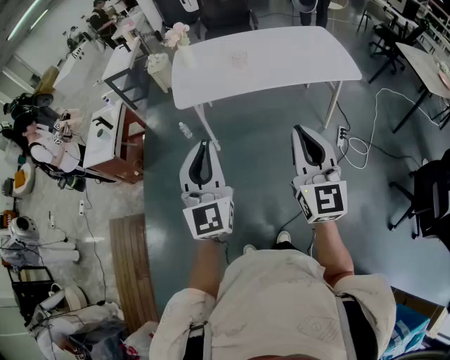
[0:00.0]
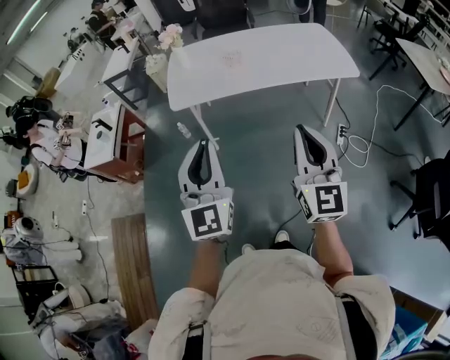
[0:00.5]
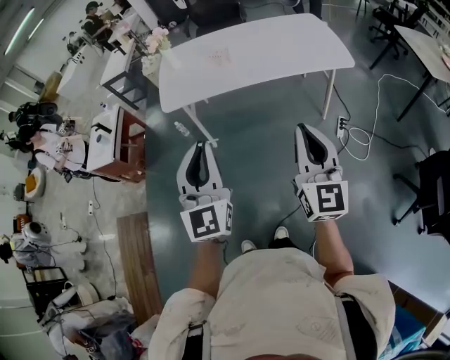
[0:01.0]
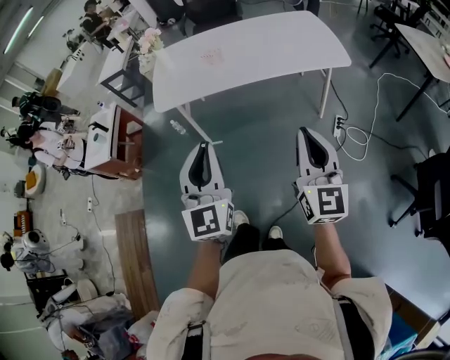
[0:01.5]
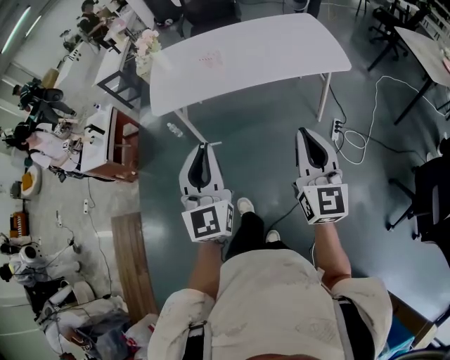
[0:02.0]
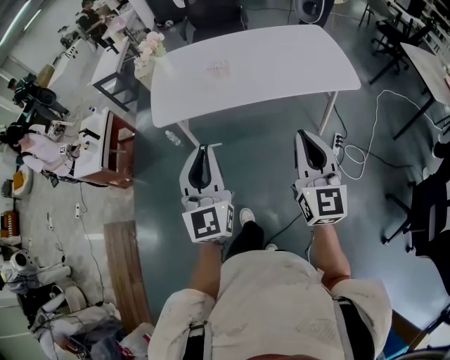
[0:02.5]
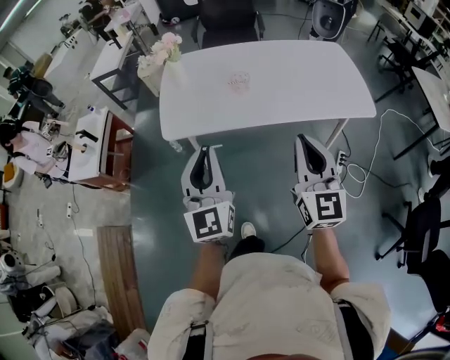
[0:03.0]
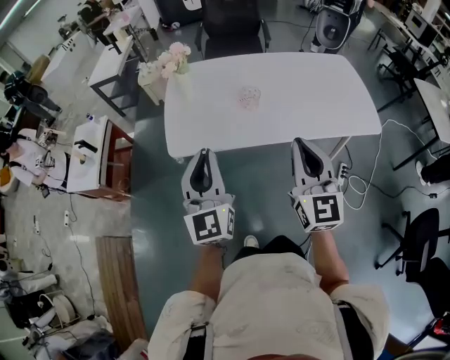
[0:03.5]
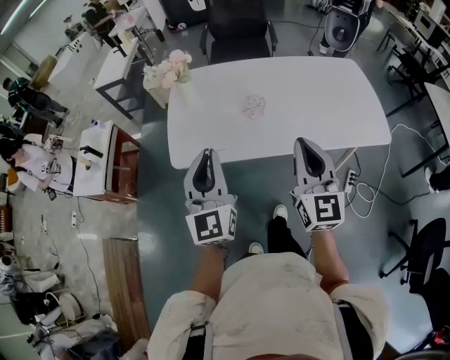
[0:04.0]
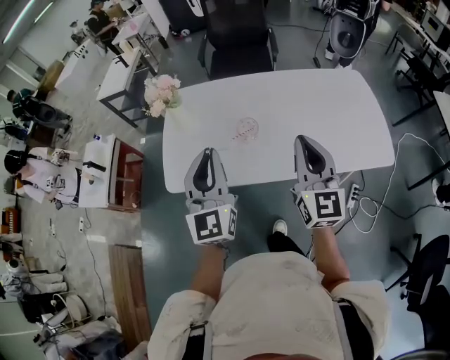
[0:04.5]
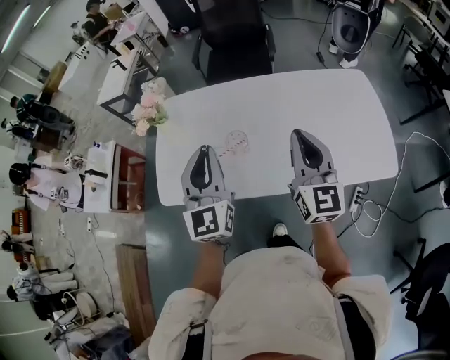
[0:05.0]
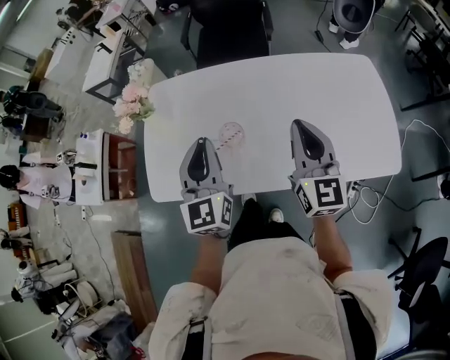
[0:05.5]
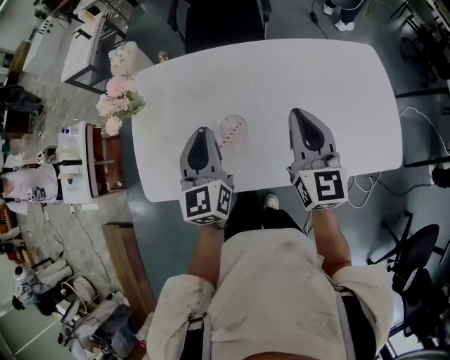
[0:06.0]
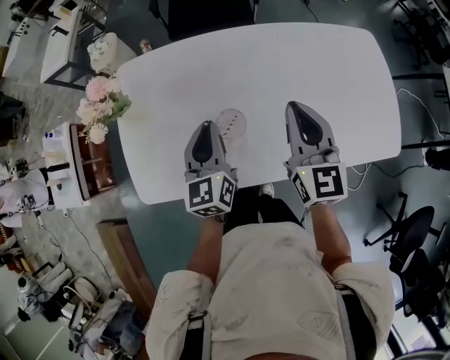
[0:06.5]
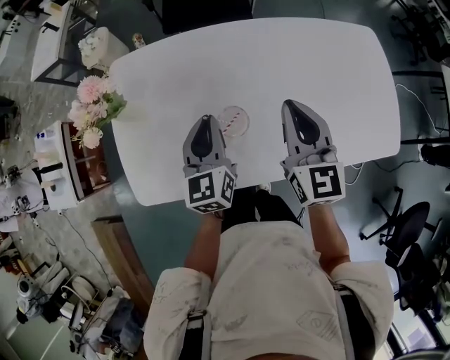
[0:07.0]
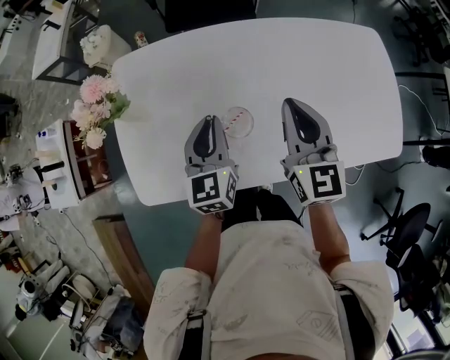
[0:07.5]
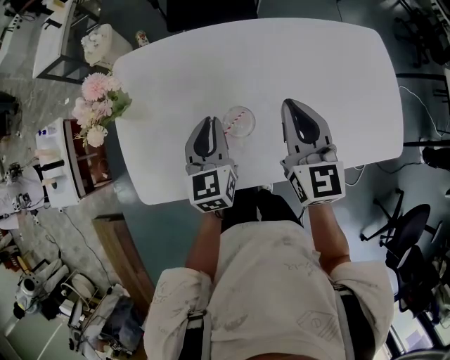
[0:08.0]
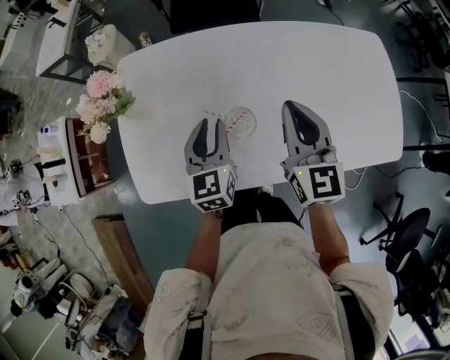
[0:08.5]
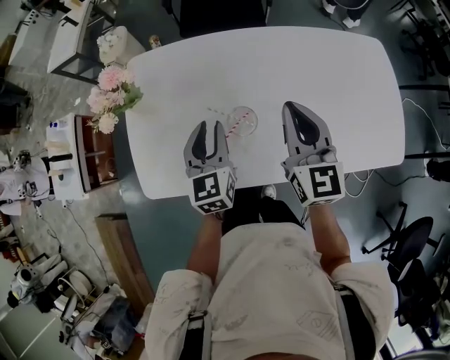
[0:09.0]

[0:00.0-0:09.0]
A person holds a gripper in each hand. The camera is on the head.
0:00.0 to 0:02.0: Both grippers travel together to the right, approximately 20 cm.
0:02.0 to 0:04.5: Both grippers are carried forward, some 50 cm.
0:04.5 to 0:07.0: Both grippers move forward and downward, some 30 cm. The left gripper rotates roughly 30 degrees.
0:07.0 to 0:09.0: The left gripper opens up.

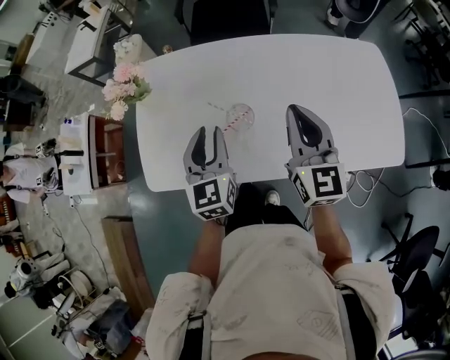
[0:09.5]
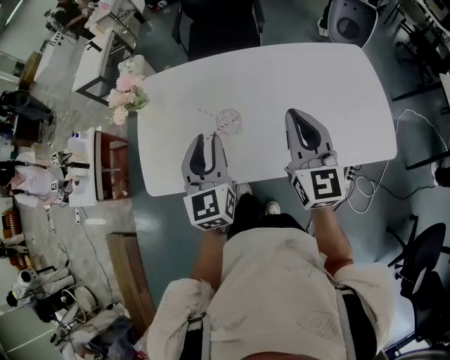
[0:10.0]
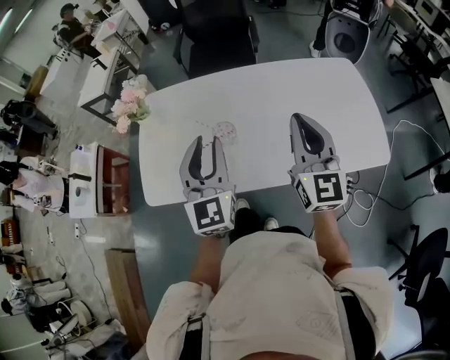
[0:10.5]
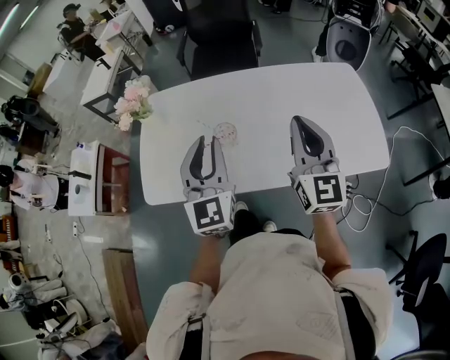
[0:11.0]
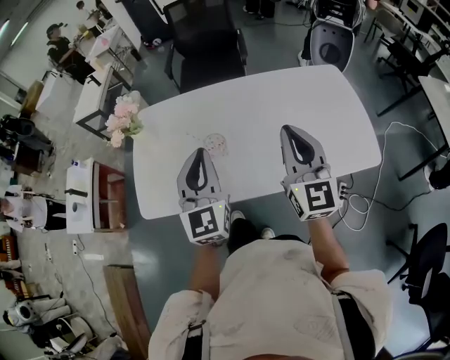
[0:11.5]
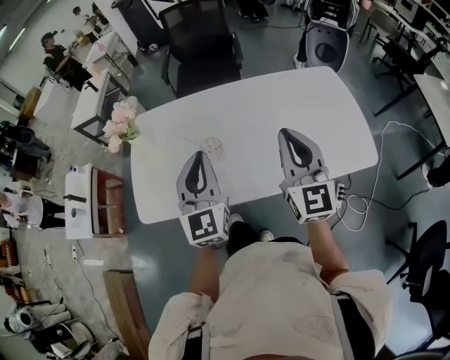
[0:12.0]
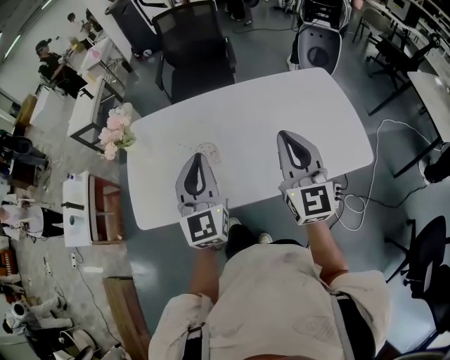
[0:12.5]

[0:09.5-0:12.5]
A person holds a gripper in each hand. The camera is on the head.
0:09.5 to 0:11.0: The left gripper is displaced upward, backward and to the right by approximately 15 cm, and turns by some 20 degrees. The right gripper is displaced backward, to the right and upward by approximately 15 cm.
0:11.0 to 0:12.5: There are only small adjustments of the grippers.

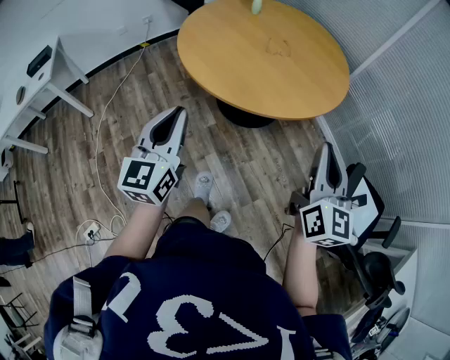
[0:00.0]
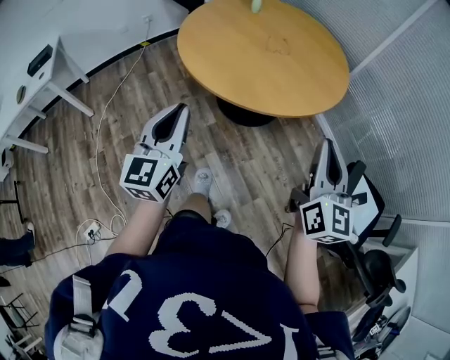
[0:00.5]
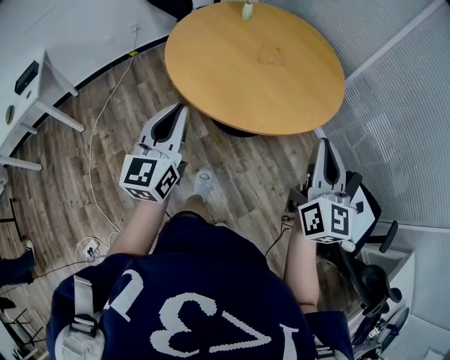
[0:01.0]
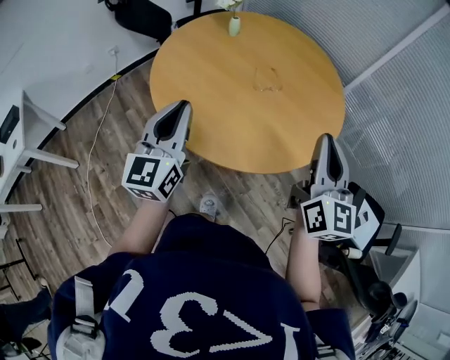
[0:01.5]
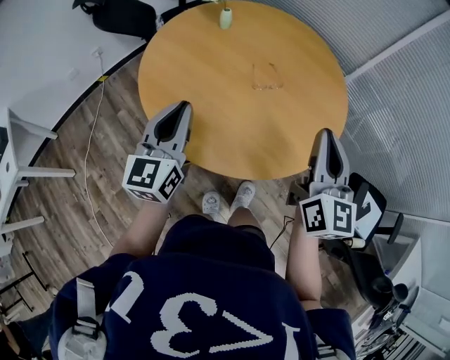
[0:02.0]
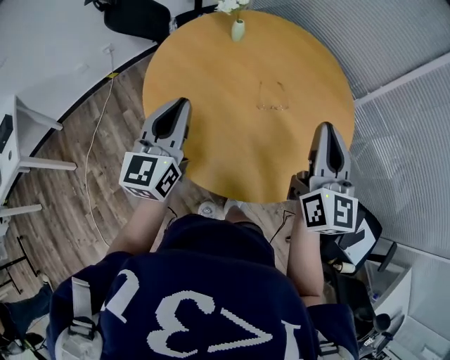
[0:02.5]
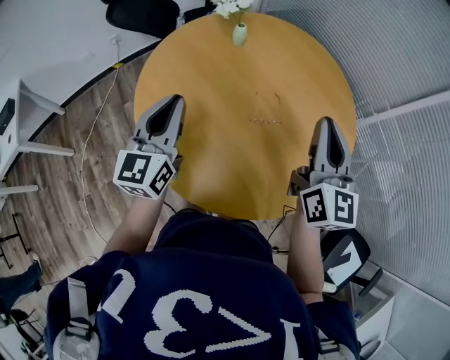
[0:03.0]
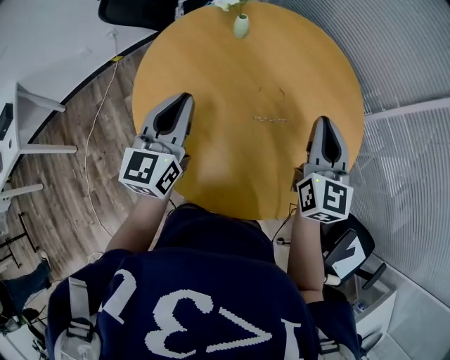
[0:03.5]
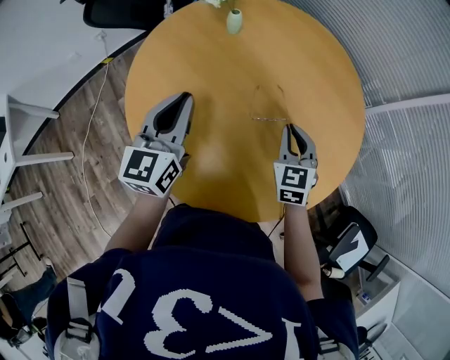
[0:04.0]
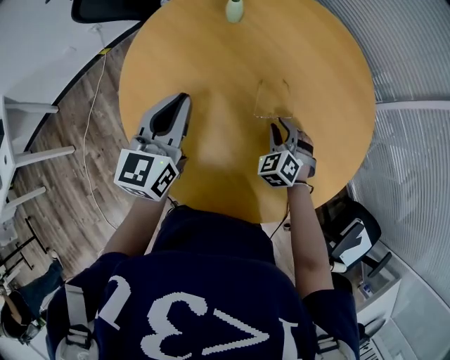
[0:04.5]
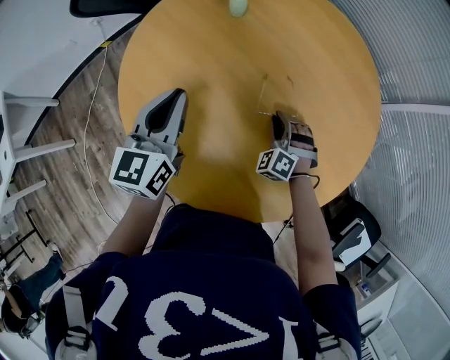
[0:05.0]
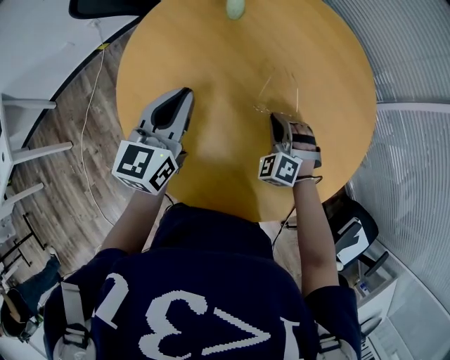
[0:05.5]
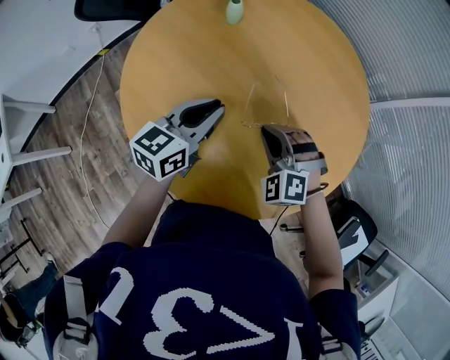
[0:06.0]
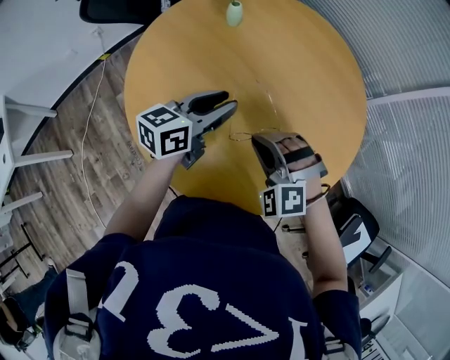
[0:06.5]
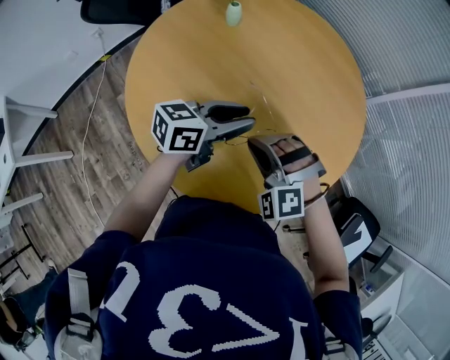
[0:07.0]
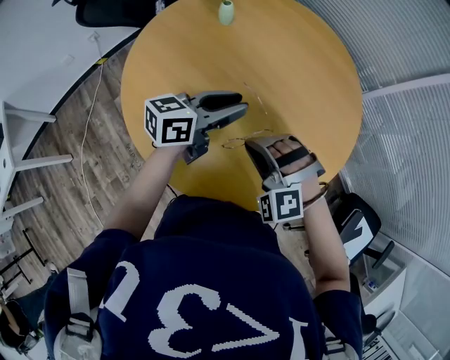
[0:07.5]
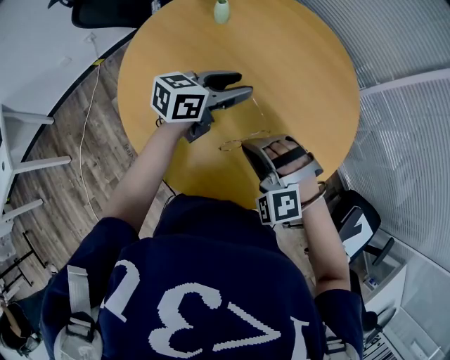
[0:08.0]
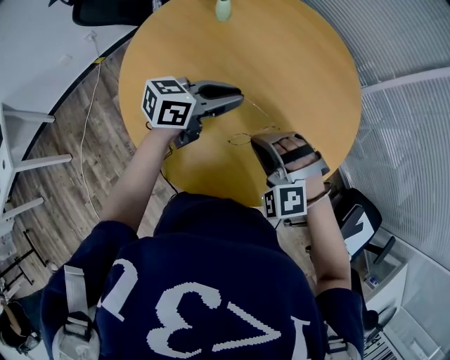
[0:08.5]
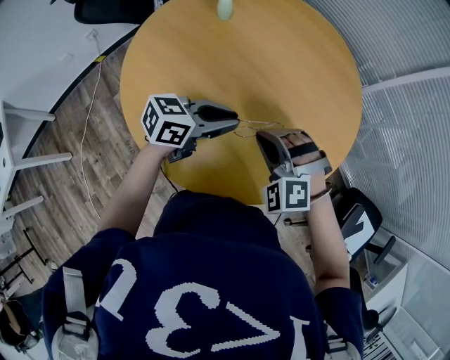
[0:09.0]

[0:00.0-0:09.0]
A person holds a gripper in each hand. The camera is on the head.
0:00.0 to 0:02.0: Both grippers travel together forward, approximately 35 cm.
0:02.0 to 0:04.5: The right gripper shifts approximately 40 cm downward and forward, angles its fingers downward, by roughly 50 degrees, and opens its fingers. Meanwhile the left gripper shifts approximately 20 cm forward.
0:04.5 to 0:07.0: The right gripper travels upward, backward and to the left by about 20 cm, swivels approximately 40 degrees, and closes its fingers, while the left gripper shifts approximately 15 cm to the right, swivels some 50 degrees, and opens its fingers.

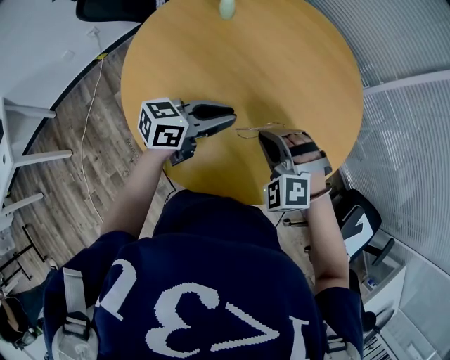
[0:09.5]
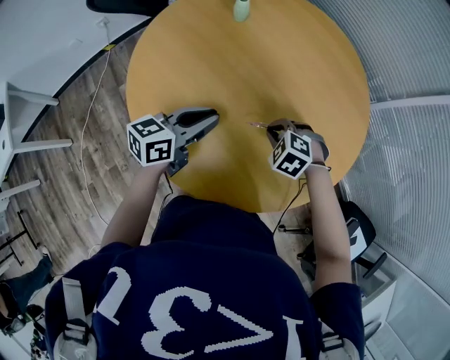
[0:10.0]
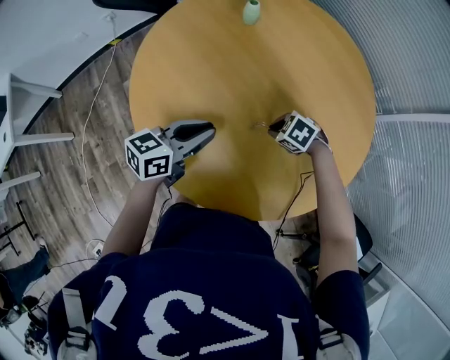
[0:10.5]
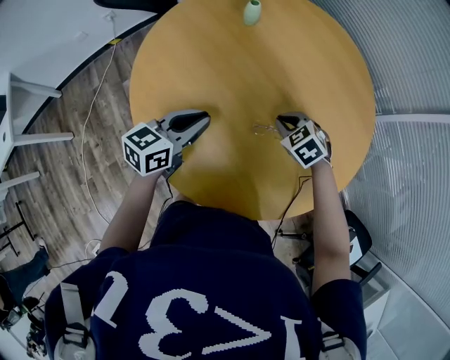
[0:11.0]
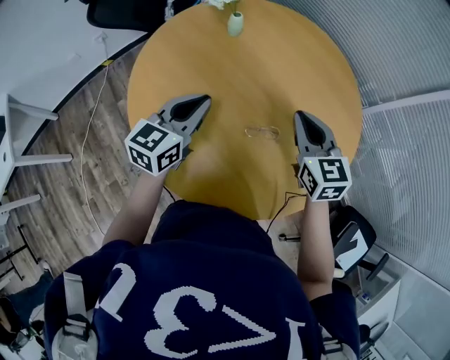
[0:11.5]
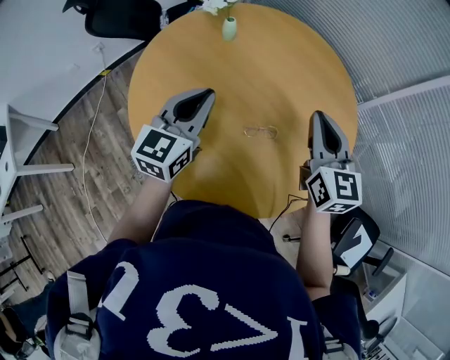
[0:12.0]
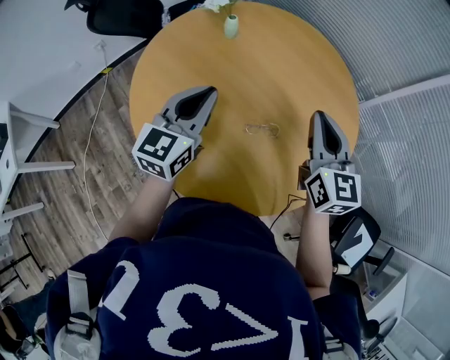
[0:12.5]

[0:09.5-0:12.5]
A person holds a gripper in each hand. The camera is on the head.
0:09.5 to 0:11.0: The right gripper changes place by some 15 cm, and turns by roughly 40 degrees, while the left gripper moves some 10 cm, and rotates roughly 30 degrees.
0:11.0 to 0:12.5: The left gripper moves upward, some 15 cm, and rotates roughly 30 degrees, while the right gripper is displaced upward by about 25 cm, and tilts its fingers about 50 degrees upward.

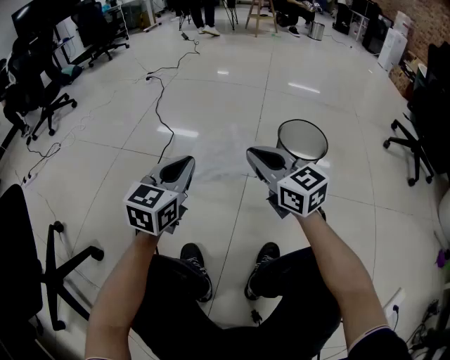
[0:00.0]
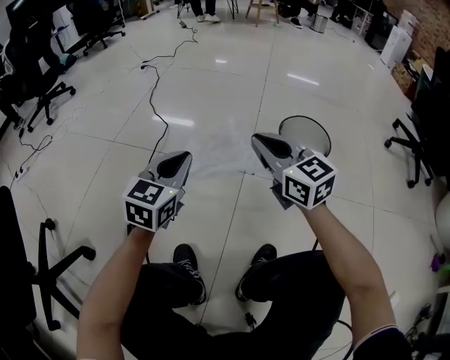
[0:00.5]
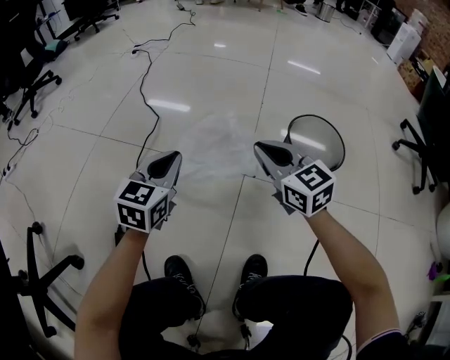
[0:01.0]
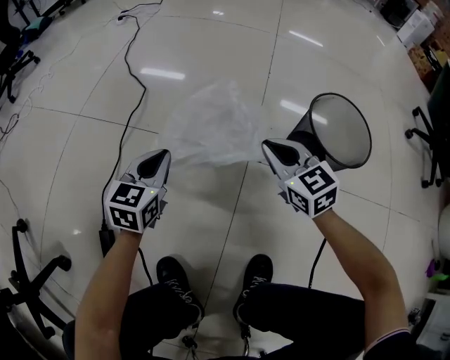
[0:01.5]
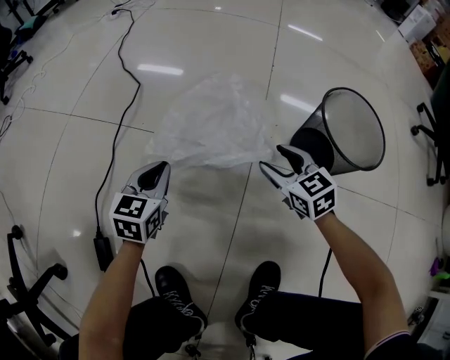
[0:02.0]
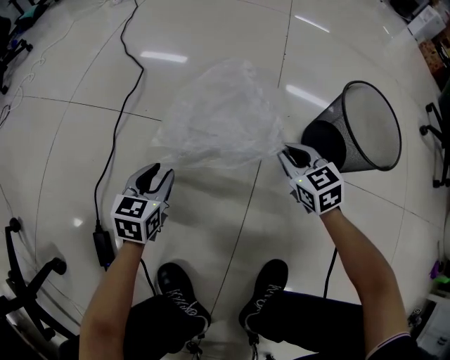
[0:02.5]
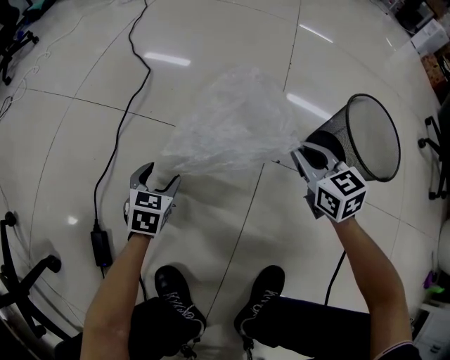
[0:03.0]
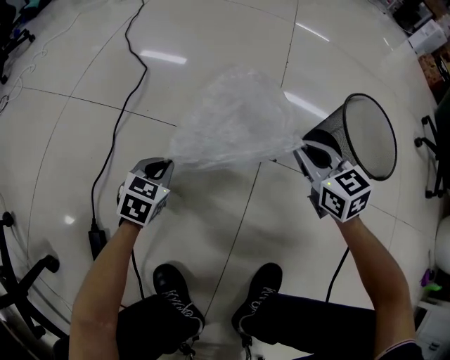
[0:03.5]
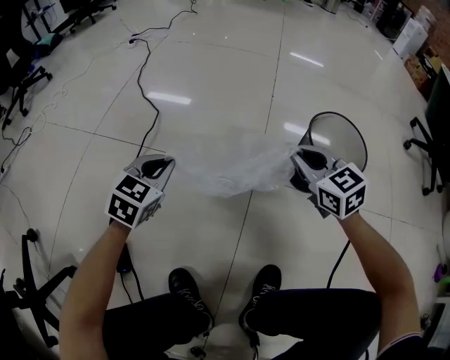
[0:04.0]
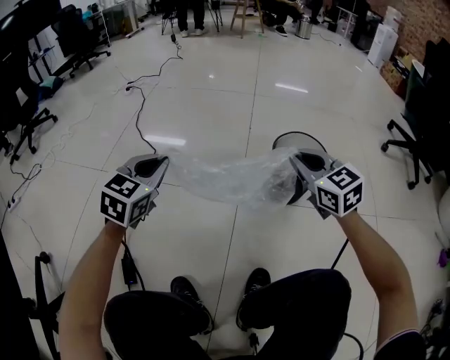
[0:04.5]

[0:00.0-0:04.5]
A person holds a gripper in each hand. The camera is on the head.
0:00.0 to 0:02.0: Both grippers move downward and forward, roughly 35 cm. The right gripper rotates some 30 degrees, and opens up.
0:02.0 to 0:04.5: Both grippers travel together upward, some 30 cm. The right gripper closes its fingers; the left gripper rotates approximately 20 degrees, and opens and closes again.
